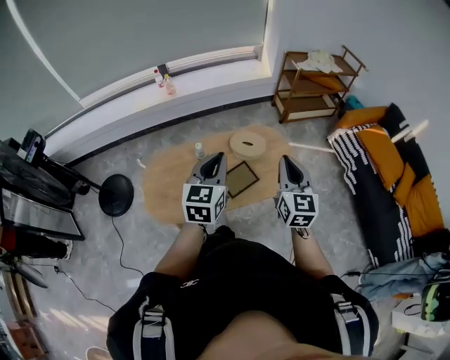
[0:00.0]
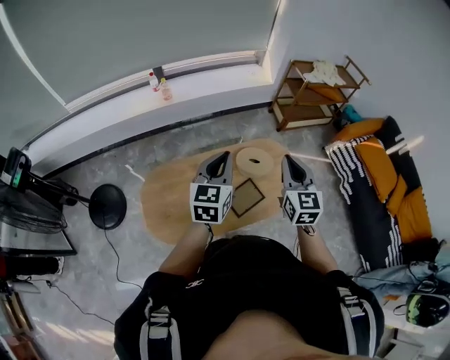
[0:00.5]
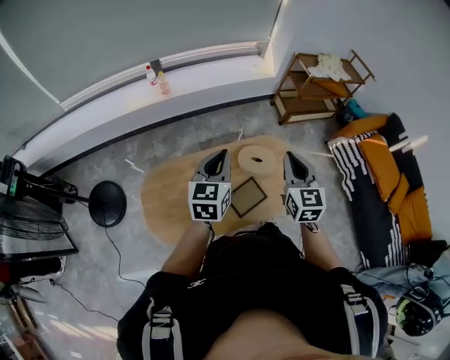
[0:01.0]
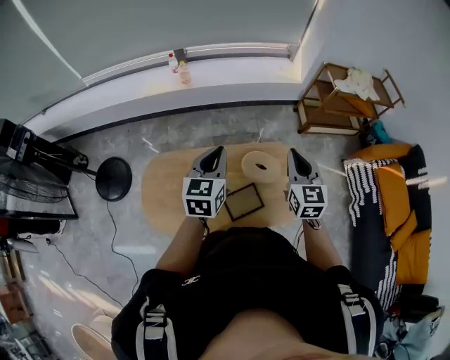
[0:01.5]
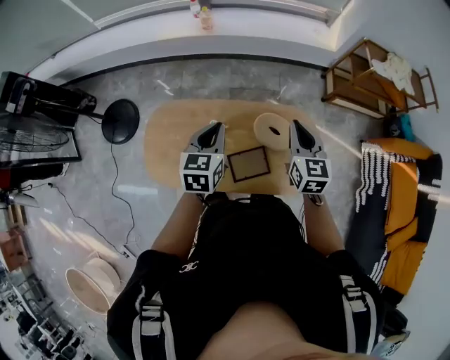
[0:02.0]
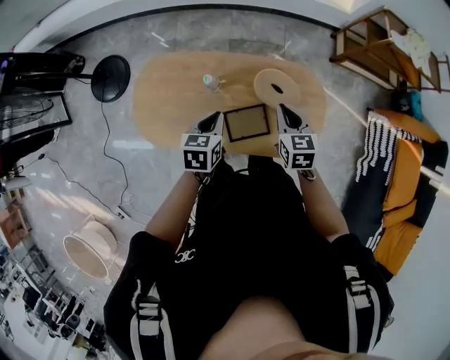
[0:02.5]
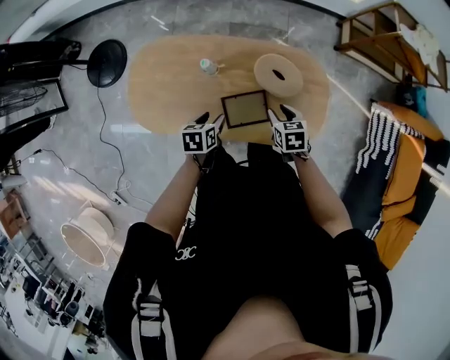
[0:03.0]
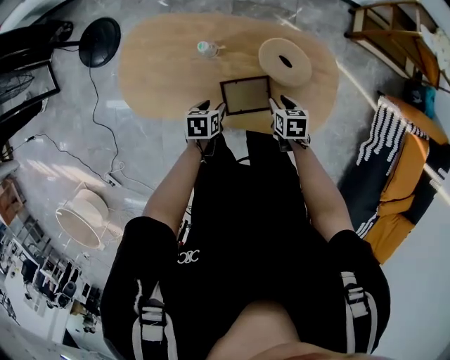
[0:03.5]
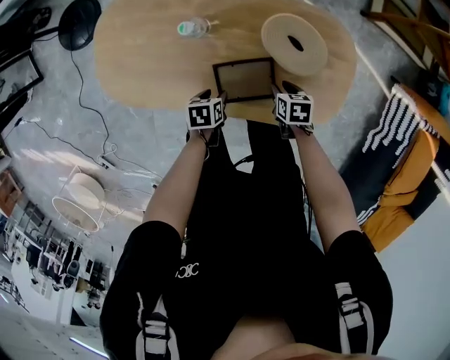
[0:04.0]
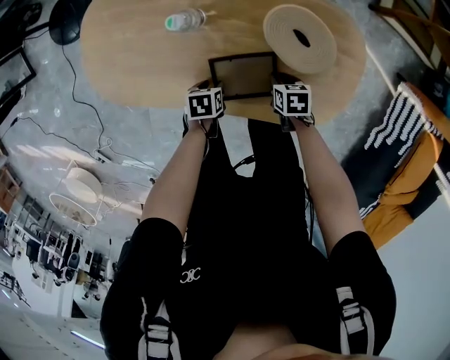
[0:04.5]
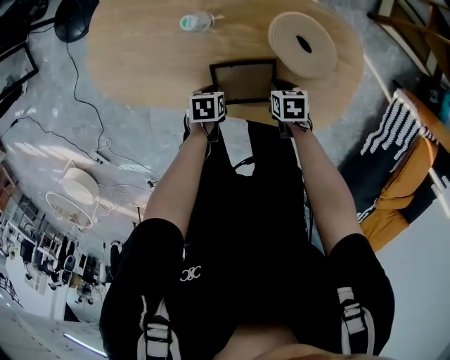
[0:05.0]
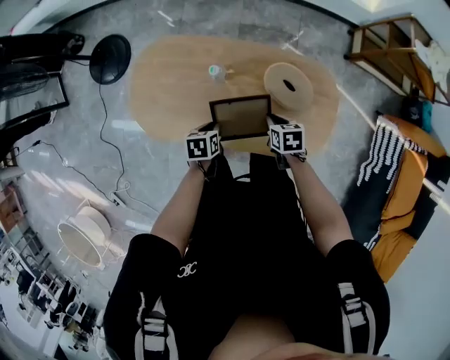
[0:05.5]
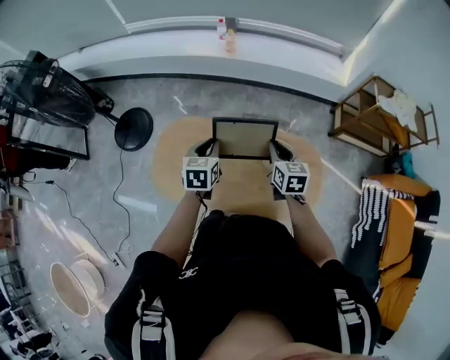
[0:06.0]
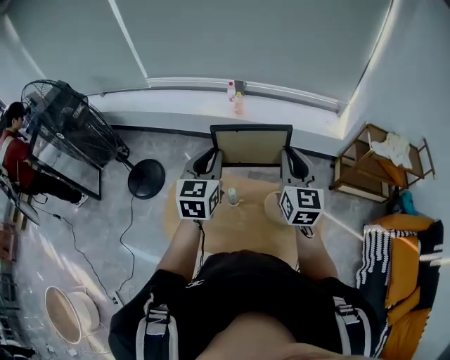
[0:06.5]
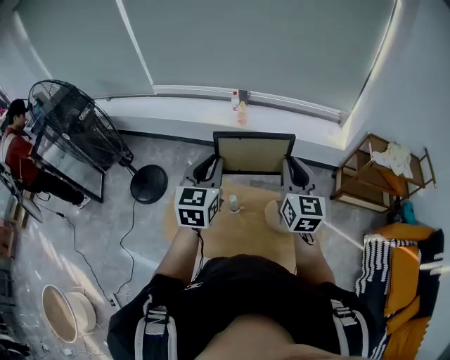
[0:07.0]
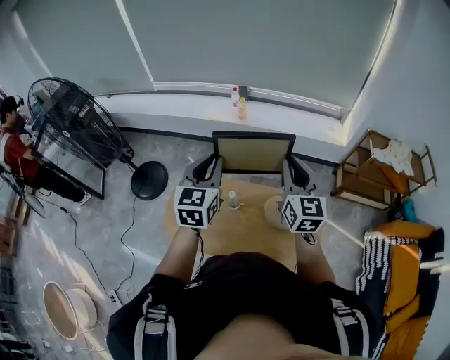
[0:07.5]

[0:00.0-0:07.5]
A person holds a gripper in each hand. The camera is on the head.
0:00.0 to 0:02.0: The left gripper shifts about 35 cm forward and downward, and swivels approximately 30 degrees. The right gripper is displaced forward by some 40 cm, and swivels roughly 30 degrees.
0:02.0 to 0:04.0: The grippers both shift downward by some 60 cm. The left gripper points its fingers roughly 40 degrees further downward, and opens up; the right gripper points its fingers approximately 50 degrees further downward, and opens.
0:04.0 to 0:05.5: The right gripper is displaced upward and to the left by some 20 cm, and closes. The left gripper moves upward, some 20 cm, and closes.
0:05.5 to 0:07.5: The two grippers go about 60 cm upward. The left gripper points its fingers roughly 50 degrees further upward. Meanwhile the right gripper tilts its fingers some 60 degrees upward.

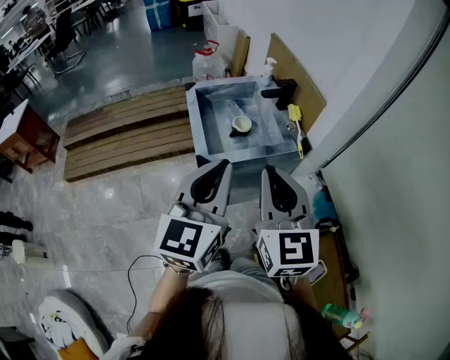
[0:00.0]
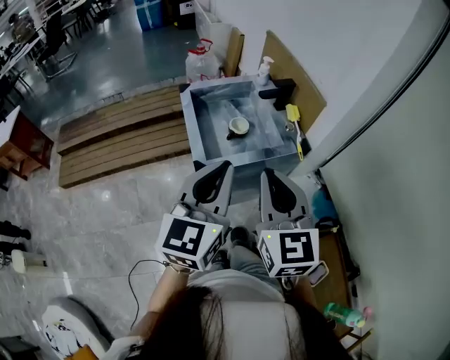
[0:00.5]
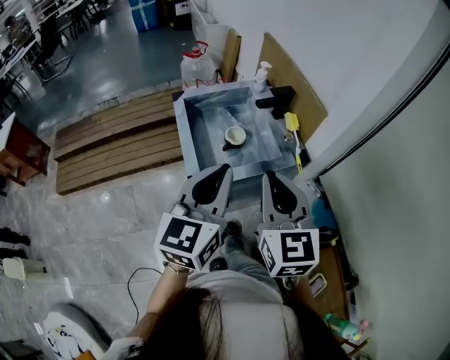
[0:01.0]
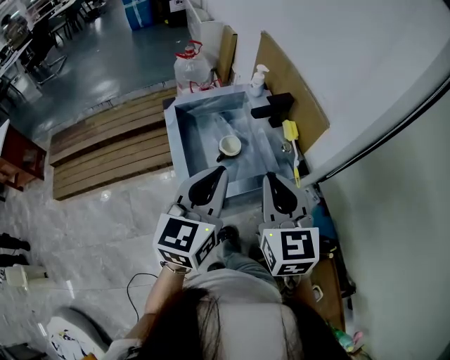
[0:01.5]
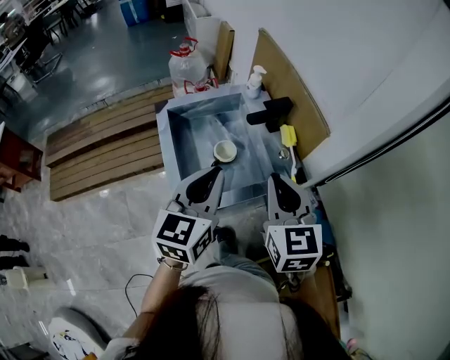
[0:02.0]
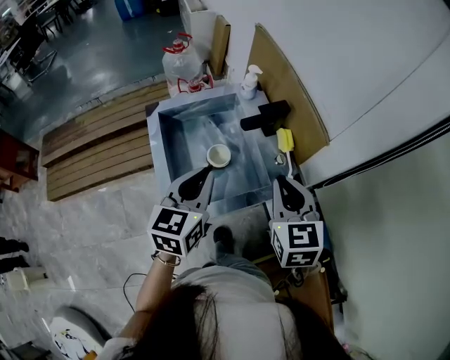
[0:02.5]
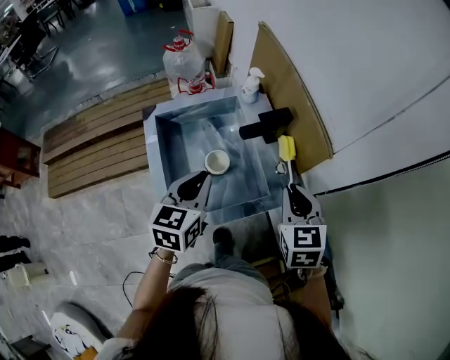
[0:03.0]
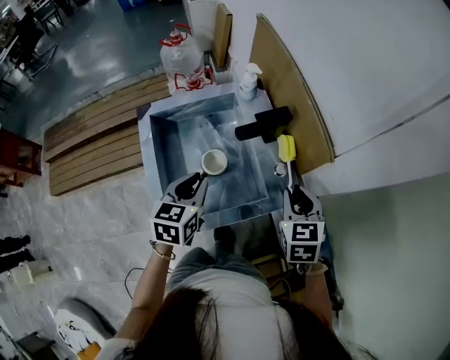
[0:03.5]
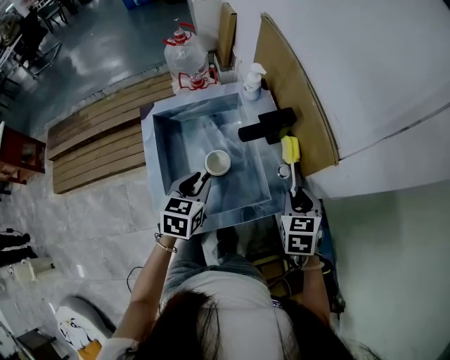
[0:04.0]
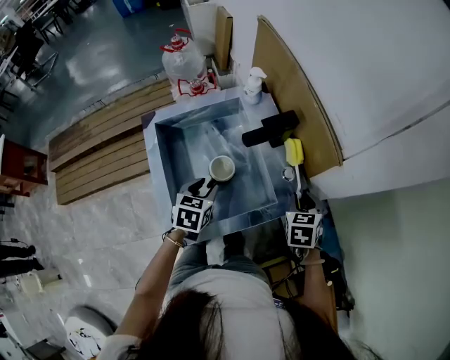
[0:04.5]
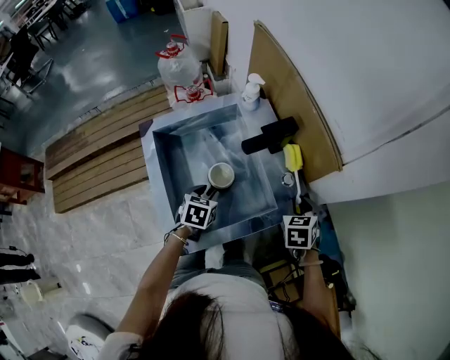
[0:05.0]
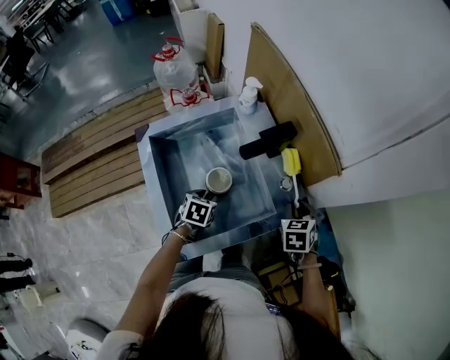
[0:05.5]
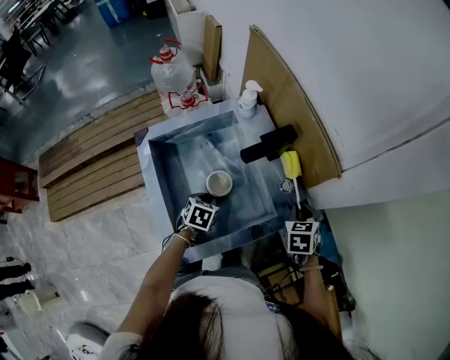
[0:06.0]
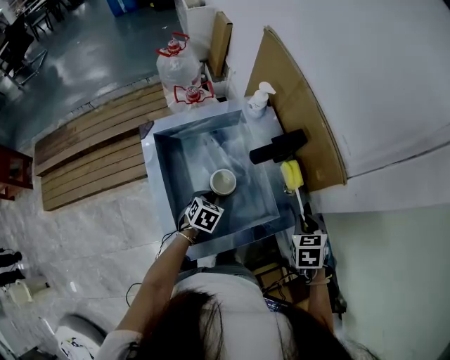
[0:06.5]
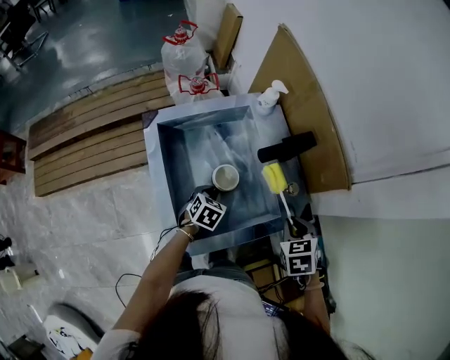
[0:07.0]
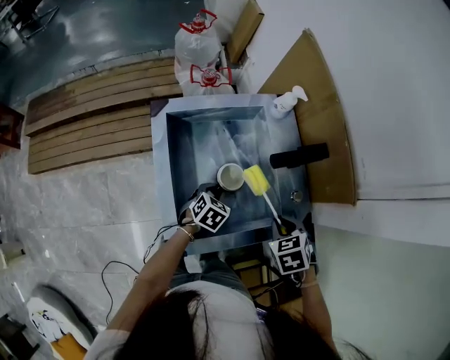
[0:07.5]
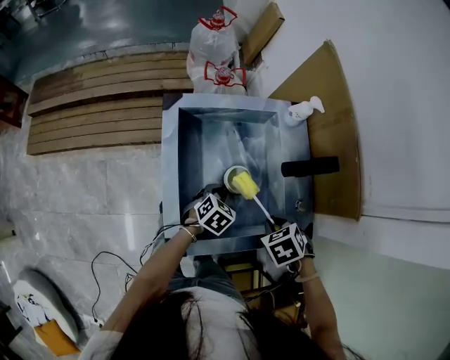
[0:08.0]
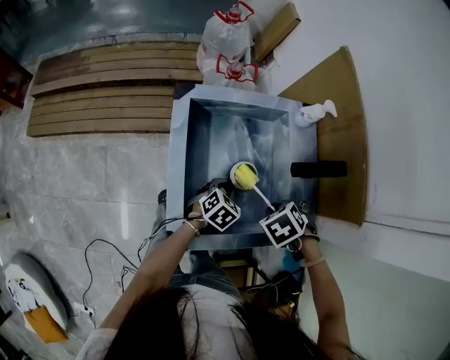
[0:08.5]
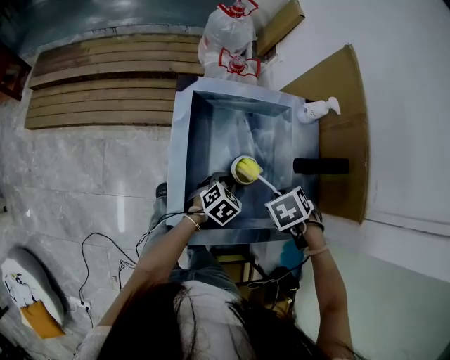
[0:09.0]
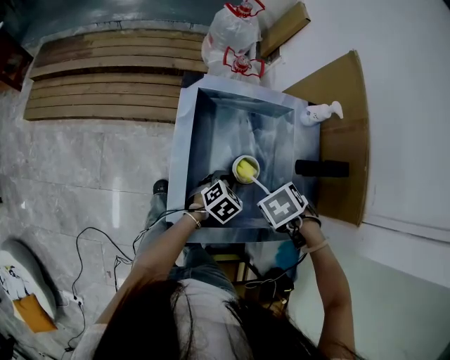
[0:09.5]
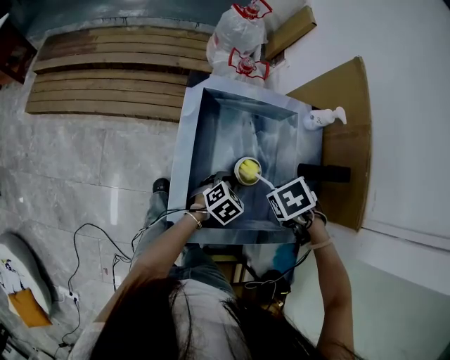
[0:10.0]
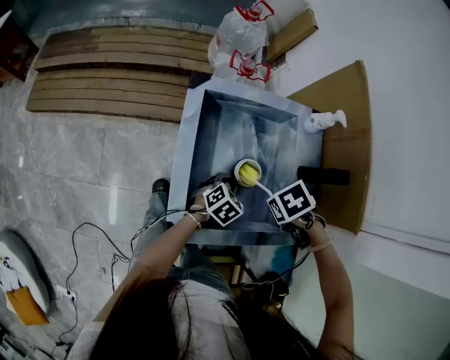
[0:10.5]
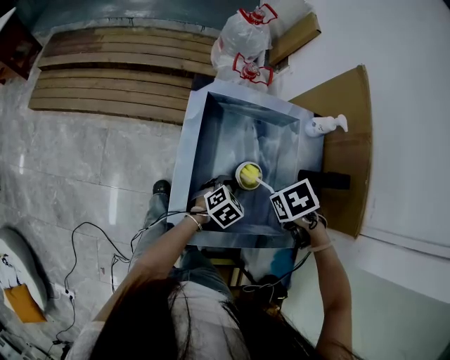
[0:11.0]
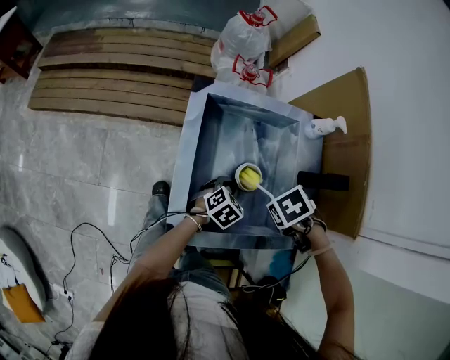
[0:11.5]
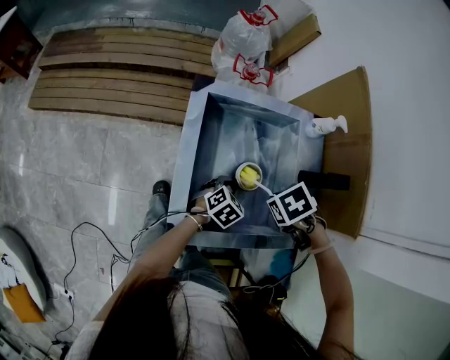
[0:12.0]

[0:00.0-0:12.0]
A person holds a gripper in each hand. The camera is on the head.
0:00.0 to 0:02.0: The grippers both shift forward by about 25 cm.
0:02.0 to 0:04.0: The right gripper shifts approximately 25 cm downward, forward and to the right, rotates roughly 30 degrees, and opens. The left gripper is displaced downward and forward by roughly 25 cm, turns by roughly 30 degrees, and opens its fingers.
0:04.0 to 0:06.0: The right gripper goes roughly 5 cm downward. The left gripper is displaced downward by approximately 15 cm, and swivels approximately 30 degrees.
0:06.0 to 0:08.0: The right gripper ends up some 15 cm from where it was, and swivels some 50 degrees.
0:08.0 to 0:10.0: The right gripper ends up some 10 cm from where it was.
0:10.0 to 0:12.0: The grippers stay close to where they were, moving slightly.

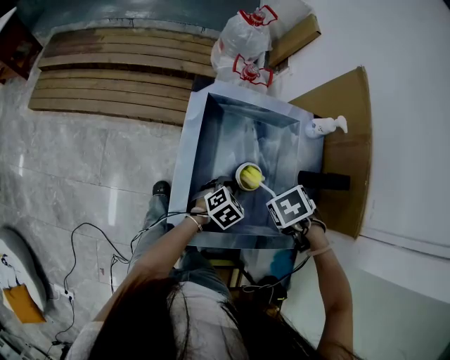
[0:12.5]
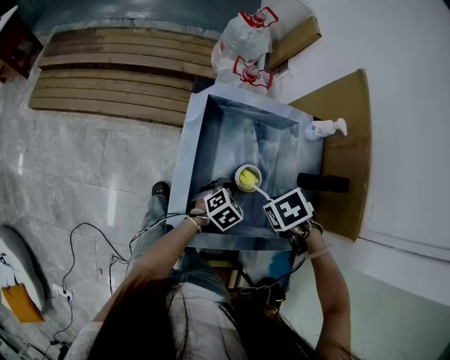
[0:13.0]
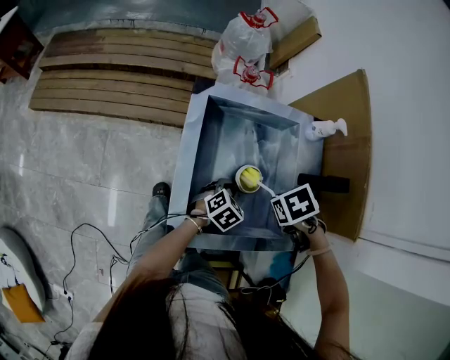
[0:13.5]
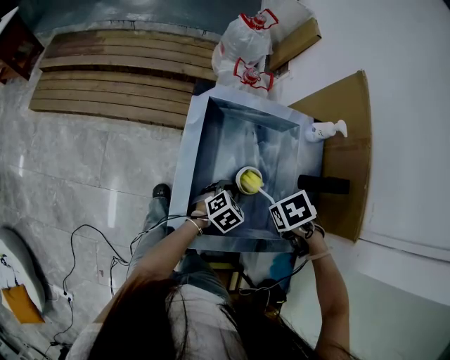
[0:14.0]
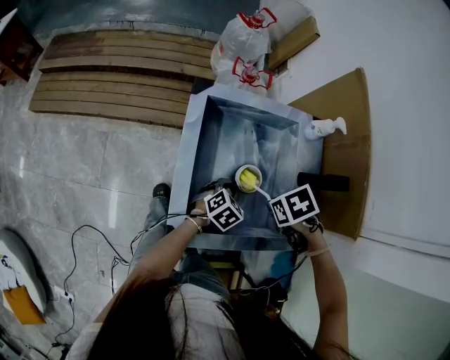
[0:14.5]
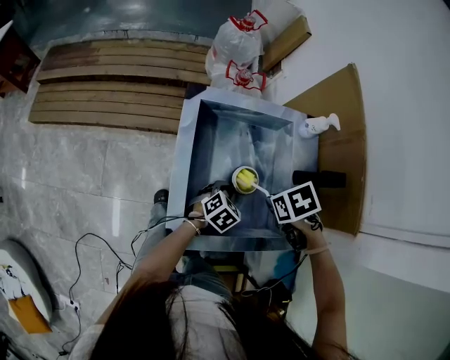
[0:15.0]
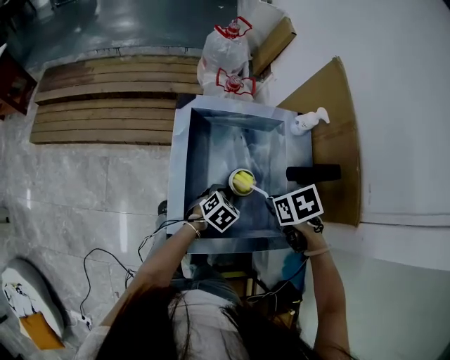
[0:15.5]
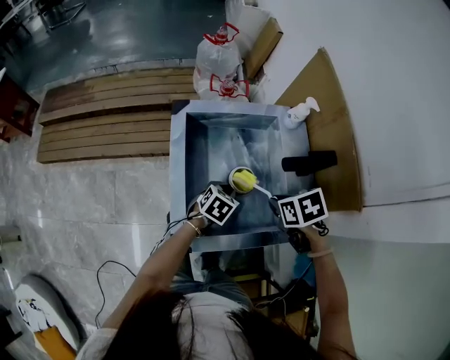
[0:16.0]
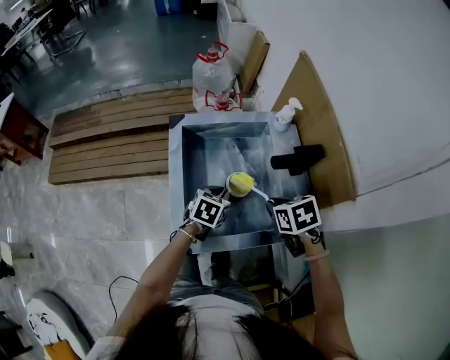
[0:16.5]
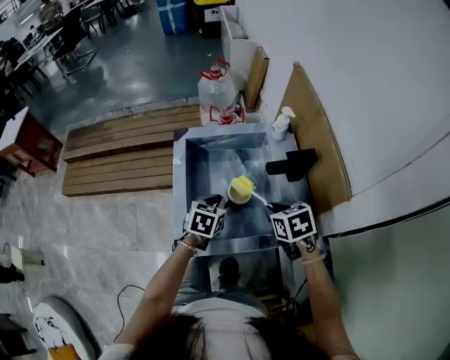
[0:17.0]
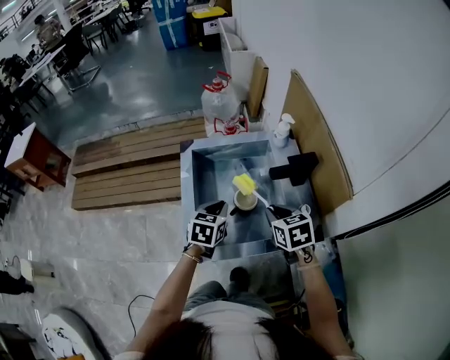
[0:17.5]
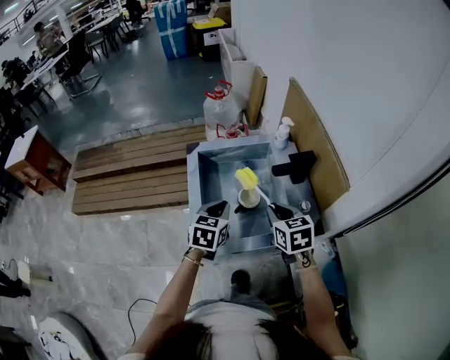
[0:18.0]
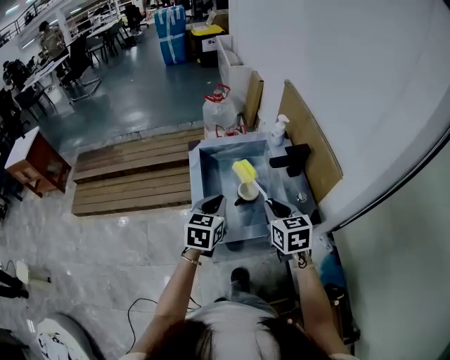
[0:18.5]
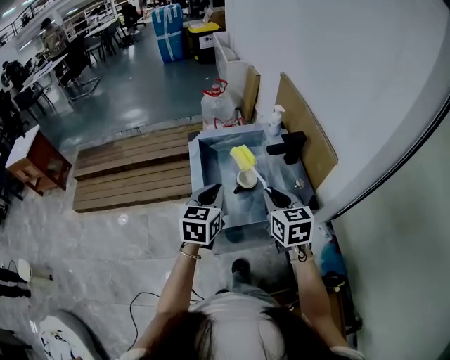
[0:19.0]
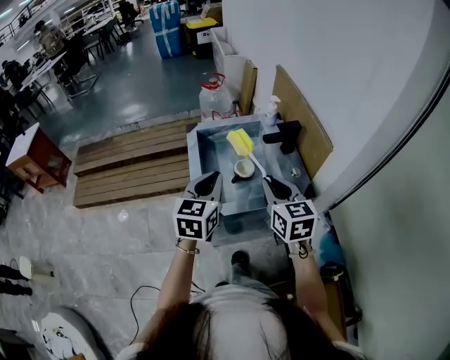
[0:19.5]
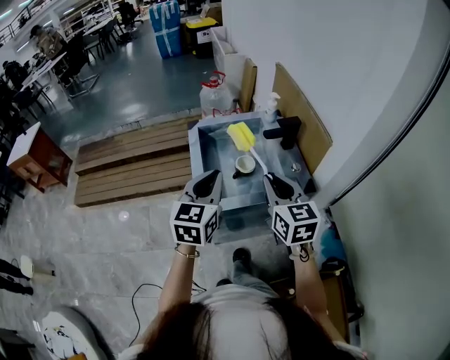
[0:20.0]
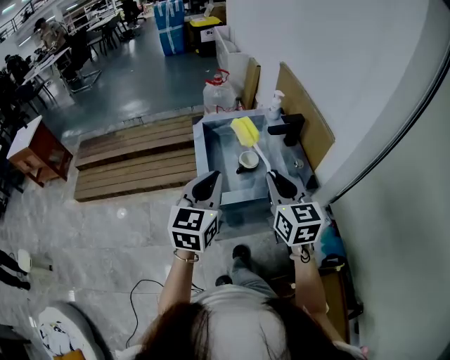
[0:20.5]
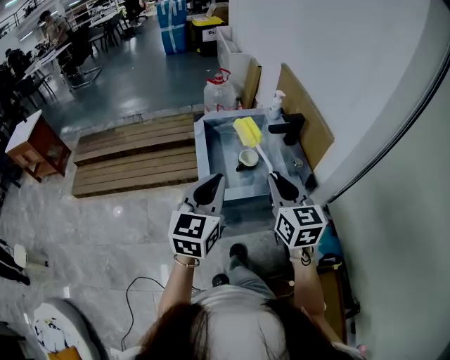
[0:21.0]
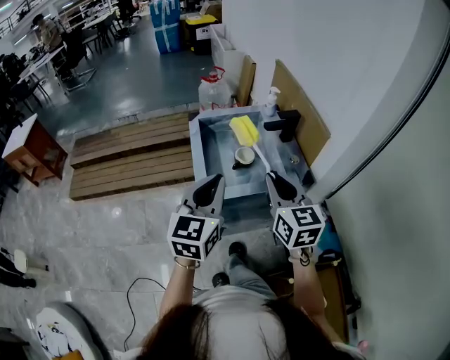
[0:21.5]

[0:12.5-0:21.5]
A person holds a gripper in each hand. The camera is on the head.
0:12.5 to 0:14.5: The grippers stay close to where they were, moving slightly.
0:14.5 to 0:17.0: The left gripper moves upward, roughly 10 cm, while the right gripper ends up some 10 cm from where it was, and tilts its fingers some 30 degrees upward.
0:17.0 to 0:19.5: The two grippers go some 25 cm upward and backward. The left gripper changes its angle by some 30 degrees; the right gripper tilts its fingers some 40 degrees upward.
0:19.5 to 0:21.5: The left gripper heads backward and upward, covering approximately 10 cm. The right gripper heads backward, covering approximately 5 cm.
